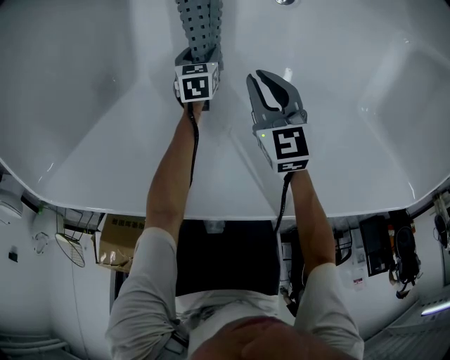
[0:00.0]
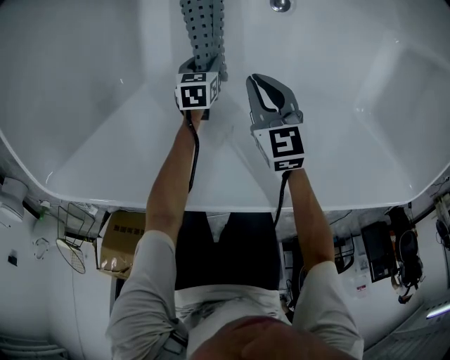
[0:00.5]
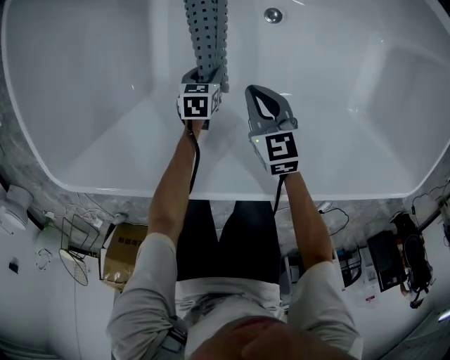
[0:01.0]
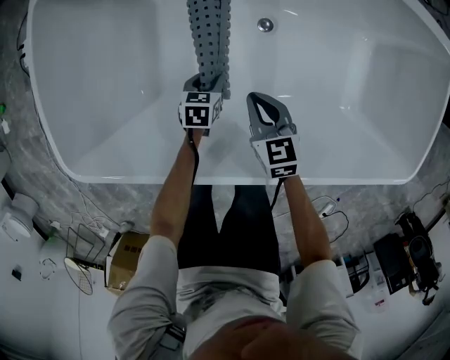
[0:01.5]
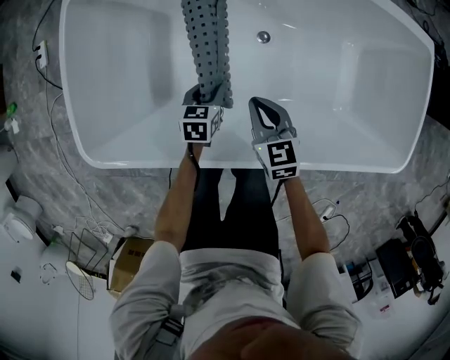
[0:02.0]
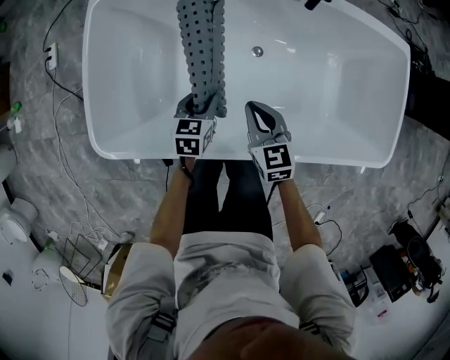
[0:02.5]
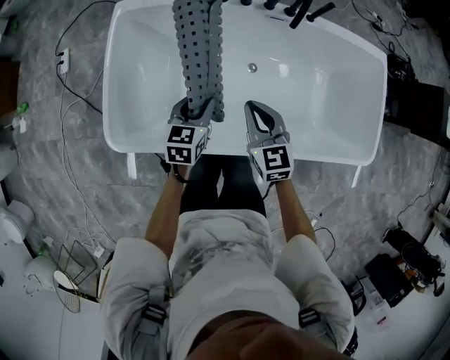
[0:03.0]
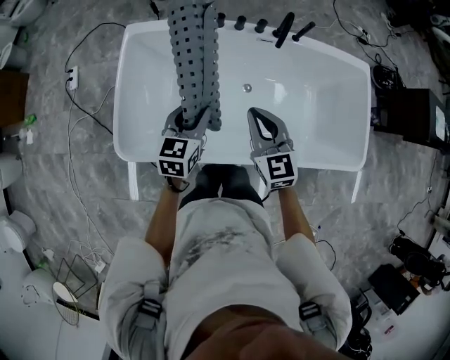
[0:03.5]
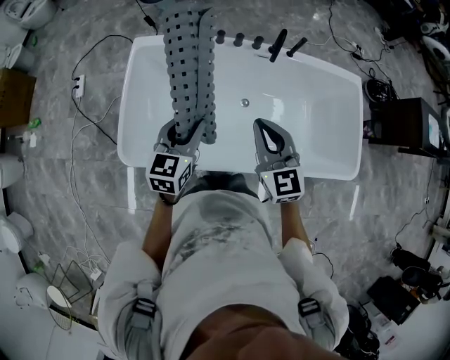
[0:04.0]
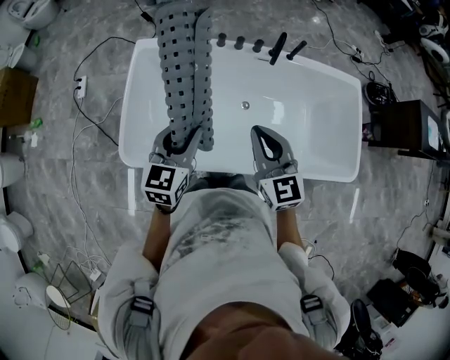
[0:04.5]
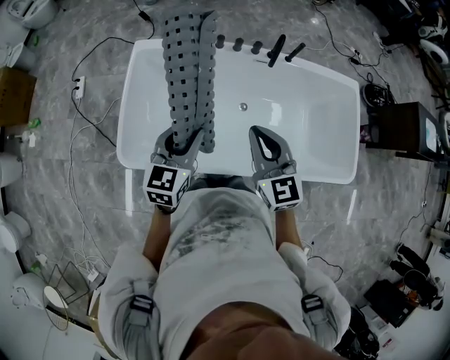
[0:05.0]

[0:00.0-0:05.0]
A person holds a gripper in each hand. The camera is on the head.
0:00.0 to 0:02.5: Both grippers travel together upward, some 35 cm. The left gripper turns by roughly 30 degrees.
0:02.5 to 0:05.0: The two grippers go some 40 cm upward. The right gripper swivels roughly 30 degrees; the left gripper turns by approximately 30 degrees.

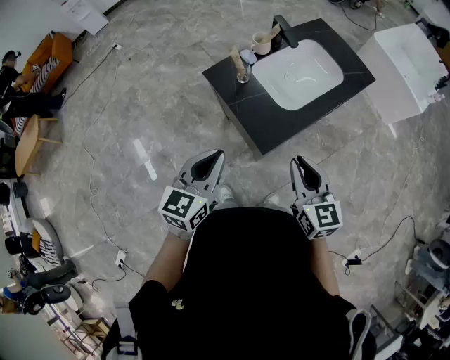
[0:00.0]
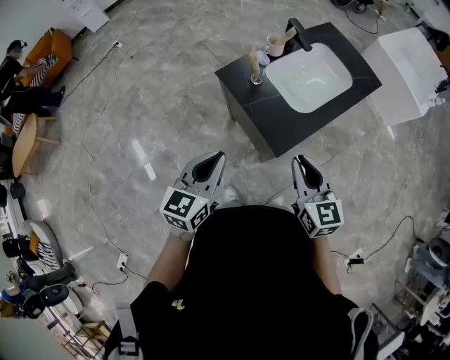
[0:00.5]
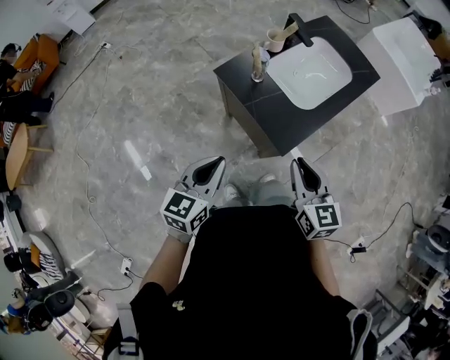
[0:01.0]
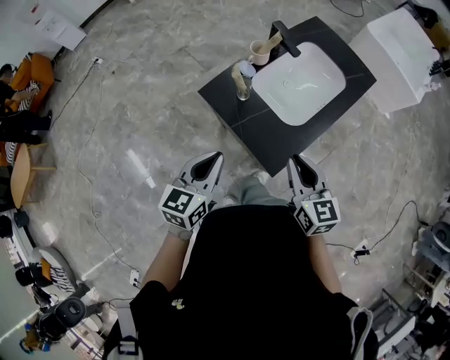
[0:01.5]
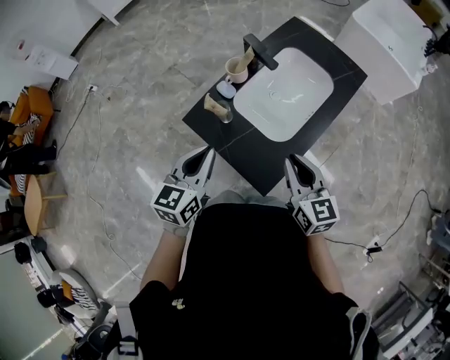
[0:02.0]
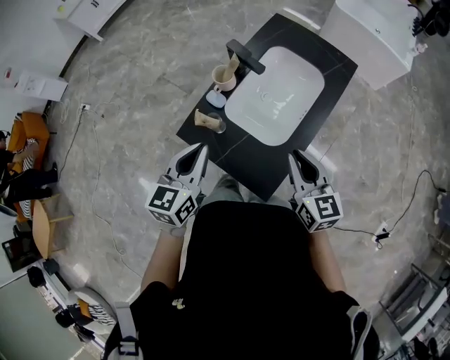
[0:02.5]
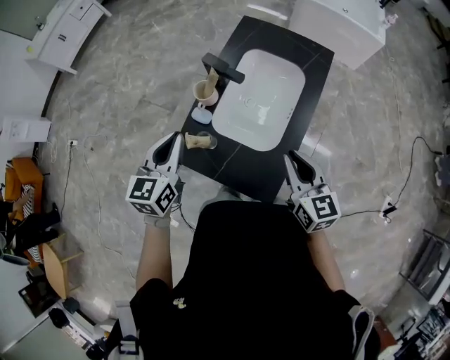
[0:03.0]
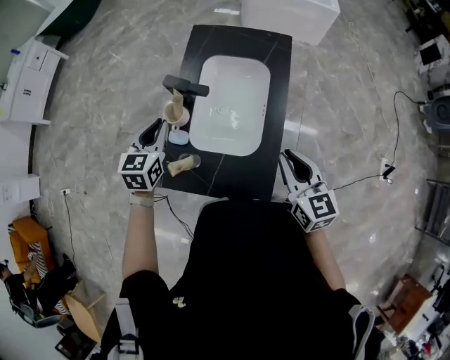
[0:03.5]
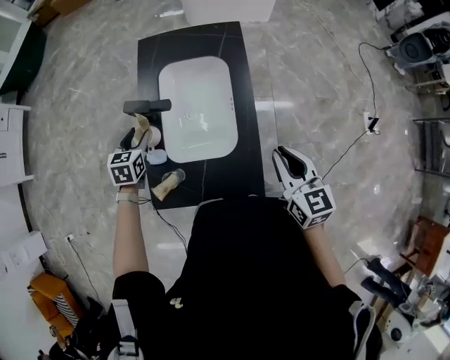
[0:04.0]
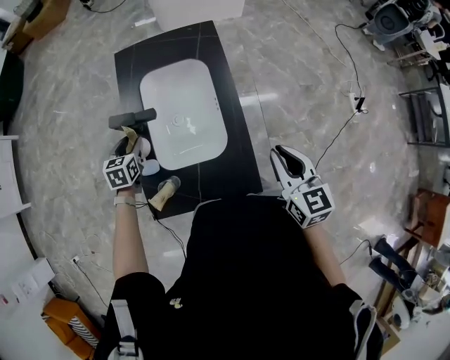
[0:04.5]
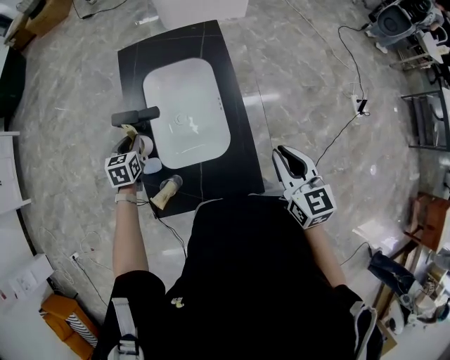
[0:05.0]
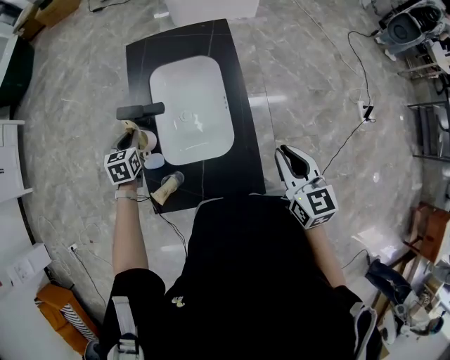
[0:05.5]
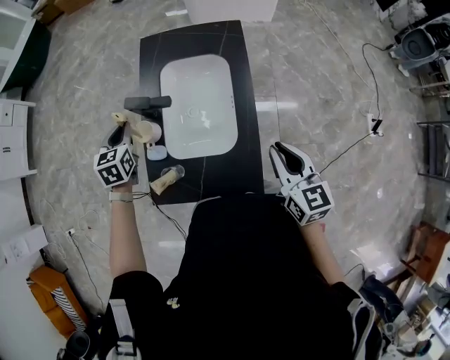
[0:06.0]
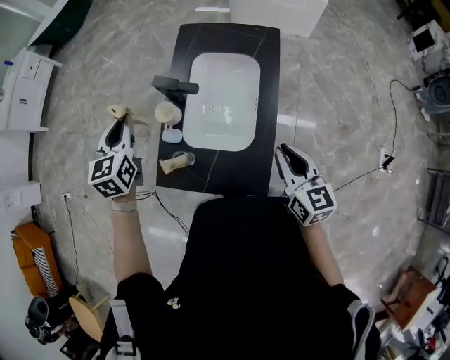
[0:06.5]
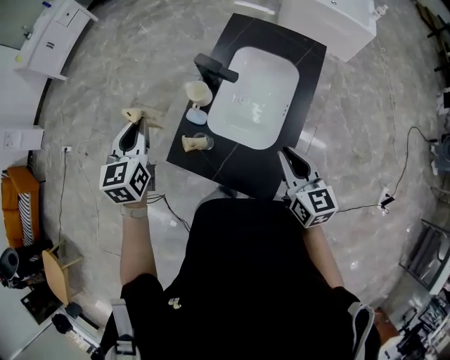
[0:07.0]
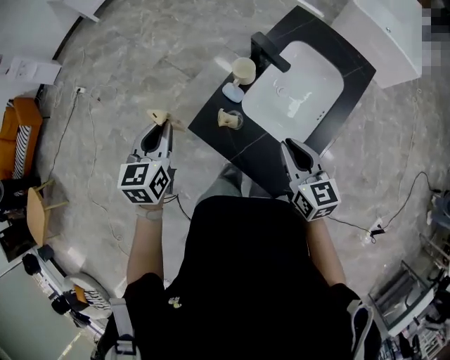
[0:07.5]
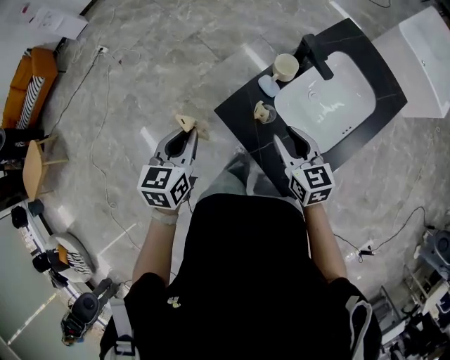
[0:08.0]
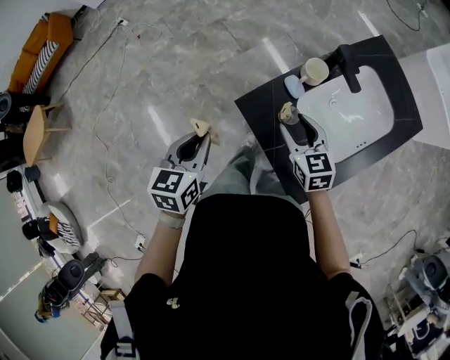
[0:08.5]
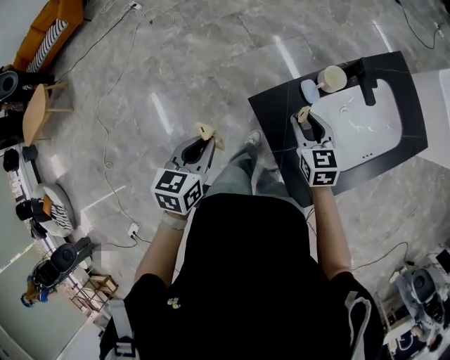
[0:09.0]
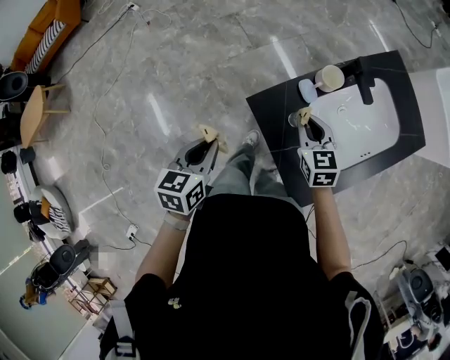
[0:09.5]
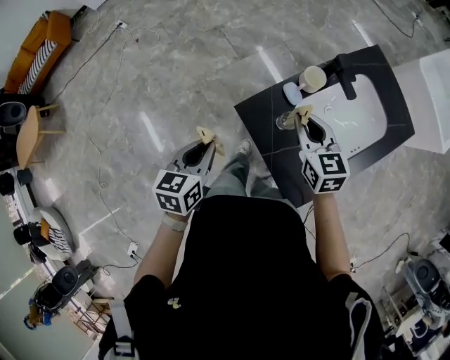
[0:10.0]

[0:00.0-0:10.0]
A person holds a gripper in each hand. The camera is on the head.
0:00.0 to 0:02.0: Both grippers move forward, roughly 20 cm.
0:02.0 to 0:04.0: The right gripper shifts by some 10 cm, and rotates roughly 40 degrees, while the left gripper ends up about 35 cm from where it was, turns by about 40 degrees, and opens.
0:04.0 to 0:06.0: The left gripper moves upward, some 5 cm, and closes up.
0:06.0 to 0:08.0: The left gripper moves about 10 cm upward and comes back, and rotates roughly 40 degrees. The right gripper ends up roughly 30 cm from where it was, and rotates some 60 degrees.
0:08.0 to 0:10.0: The right gripper moves forward, some 5 cm, travels downward and back again, roughly 5 cm each way, and closes. Meanwhile the left gripper ends up roughly 5 cm from where it was.

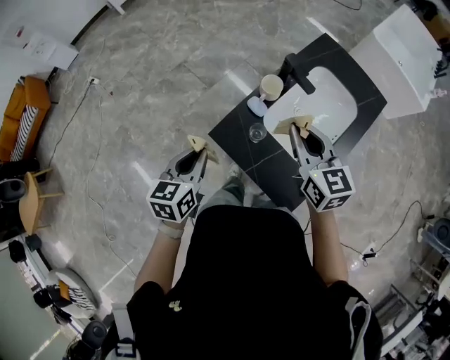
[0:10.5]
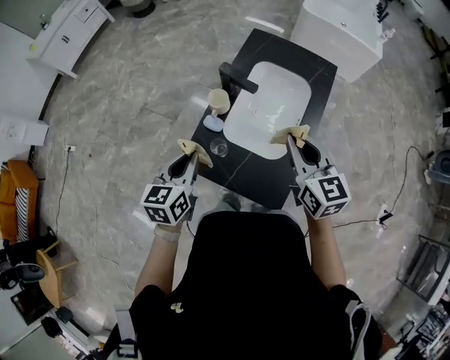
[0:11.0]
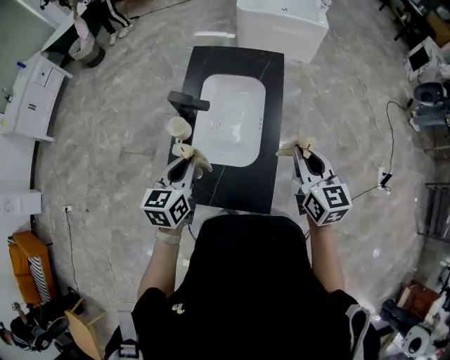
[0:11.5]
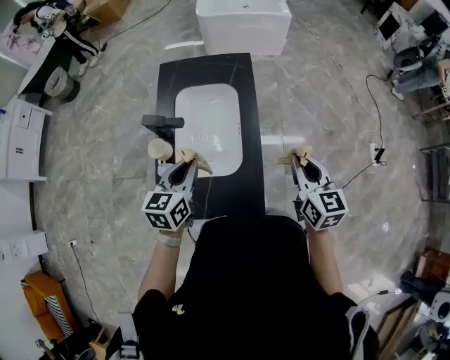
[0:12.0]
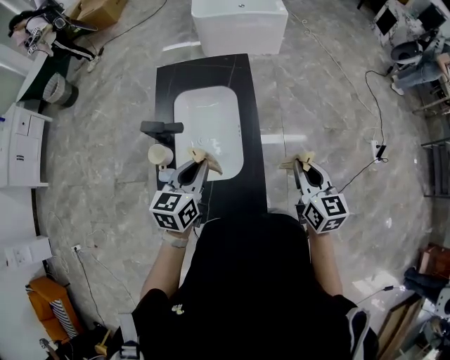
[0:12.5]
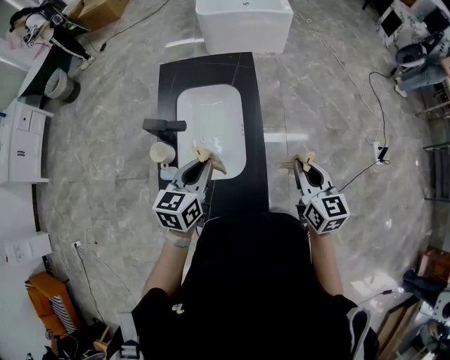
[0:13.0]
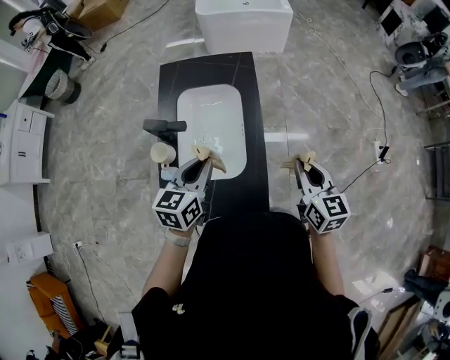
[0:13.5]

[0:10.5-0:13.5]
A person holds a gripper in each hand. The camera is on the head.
0:10.5 to 0:12.0: The left gripper changes place by about 30 cm, and swivels about 40 degrees, while the right gripper changes place by some 35 cm, and changes its angle by approximately 50 degrees.
0:12.0 to 0:13.5: There are only small adjustments of the grippers.

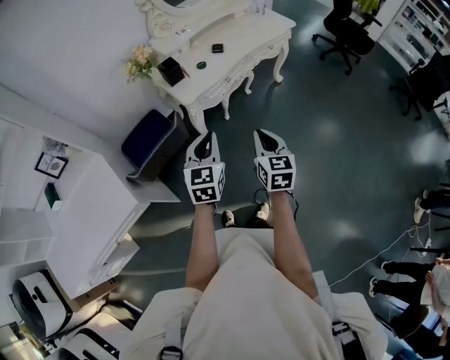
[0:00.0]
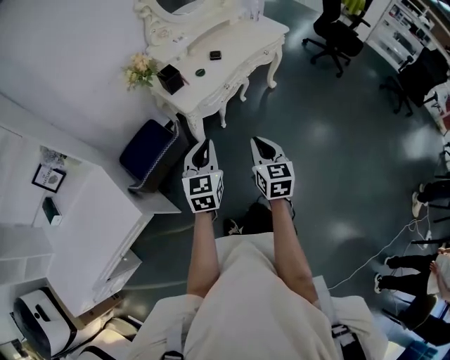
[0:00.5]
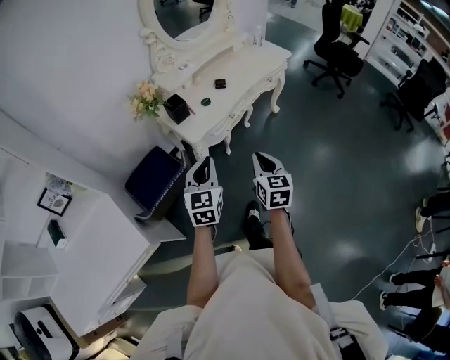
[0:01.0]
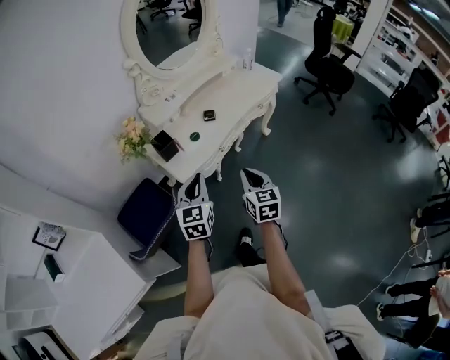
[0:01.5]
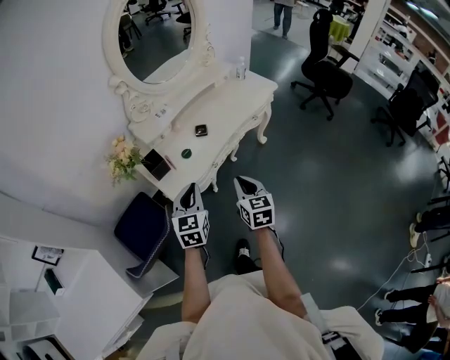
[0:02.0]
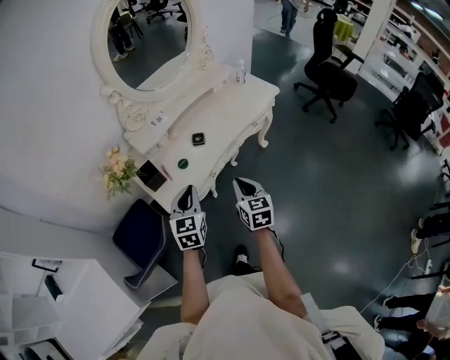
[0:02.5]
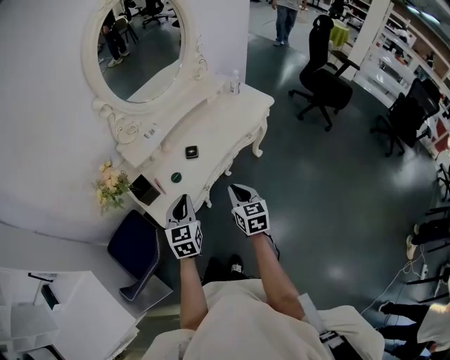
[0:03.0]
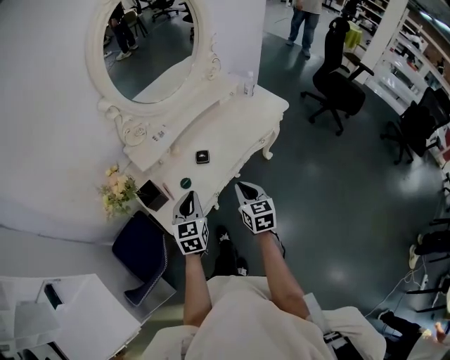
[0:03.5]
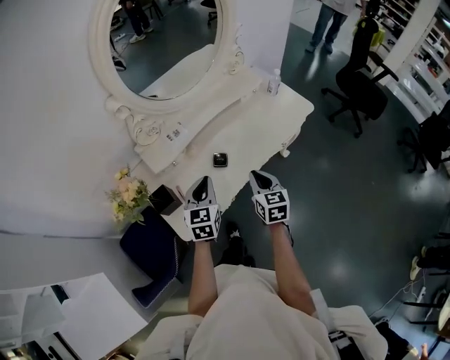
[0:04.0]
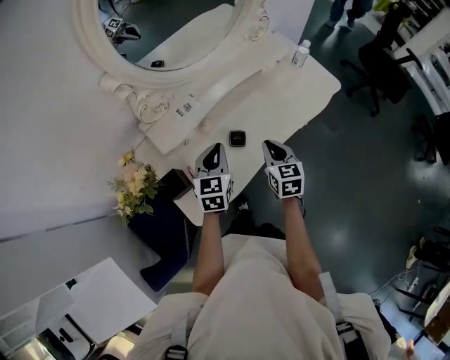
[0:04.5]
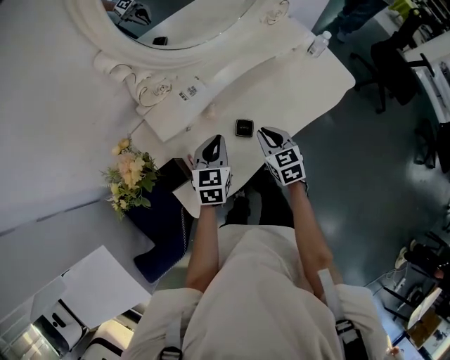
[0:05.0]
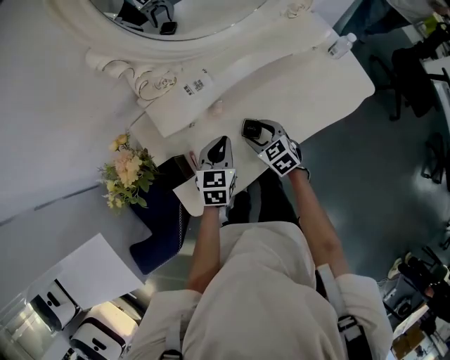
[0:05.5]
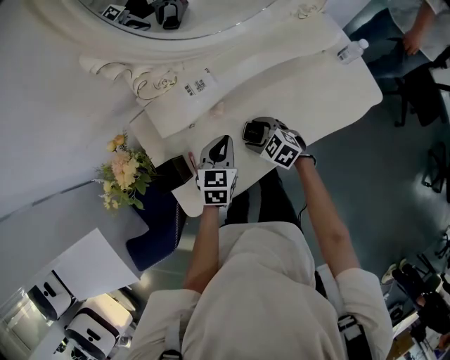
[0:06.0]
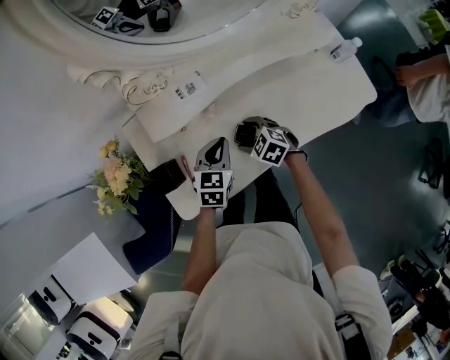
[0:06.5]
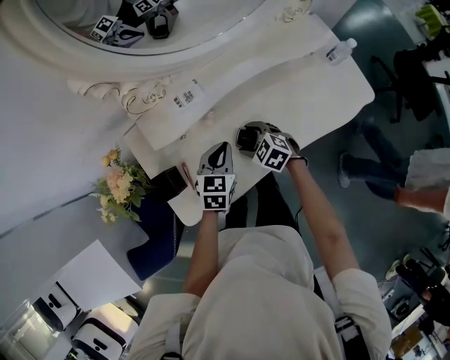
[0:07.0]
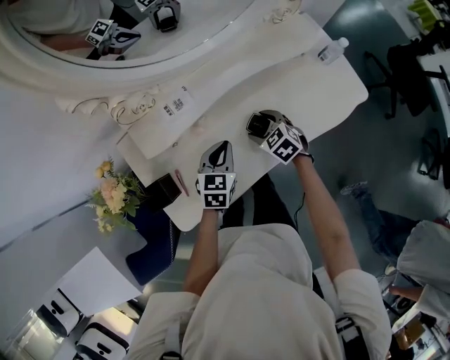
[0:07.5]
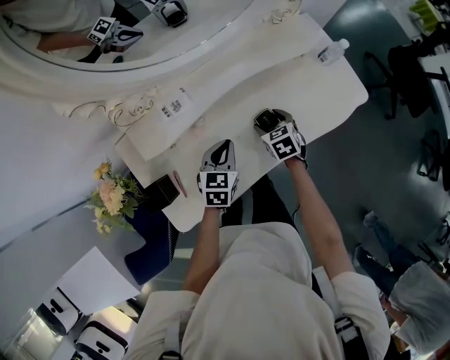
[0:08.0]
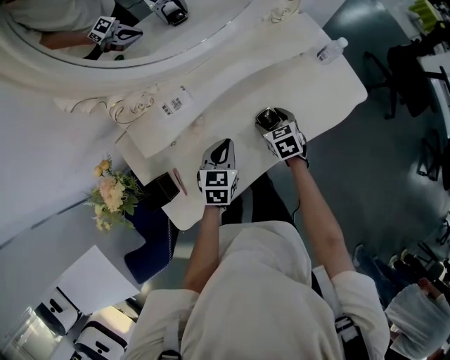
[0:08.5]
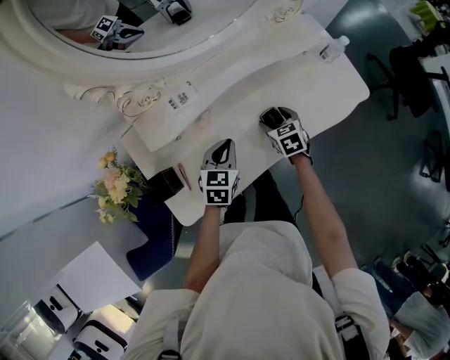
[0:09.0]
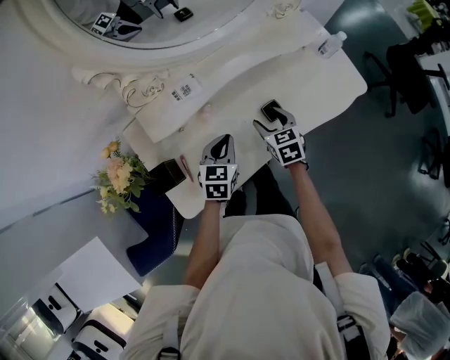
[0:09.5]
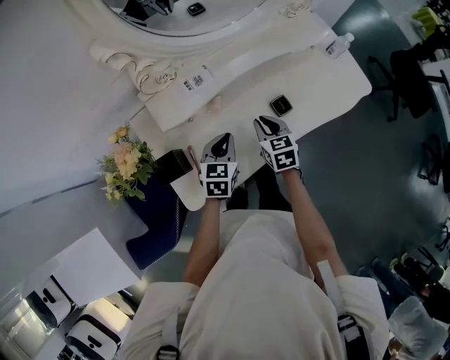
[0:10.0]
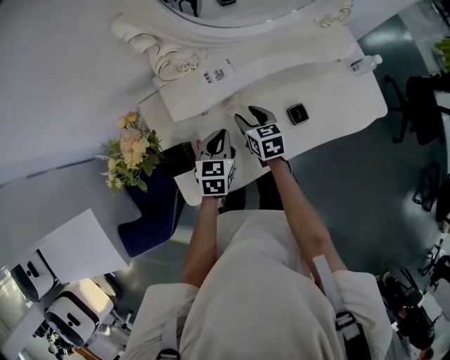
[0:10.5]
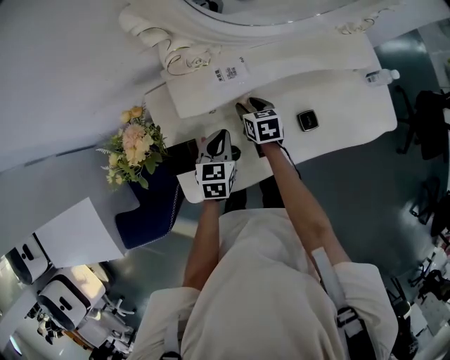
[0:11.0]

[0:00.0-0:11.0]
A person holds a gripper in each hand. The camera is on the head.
0:00.0 to 0:02.0: The grippers both shift forward by roughly 25 cm.
0:02.0 to 0:03.5: Both grippers travel together forward, roughly 15 cm.
0:03.5 to 0:05.5: Both grippers move forward and downward, roughly 30 cm. The right gripper rotates roughly 50 degrees, and opens.
0:05.5 to 0:07.5: The two grippers go approximately 10 cm to the right.
0:07.5 to 0:09.0: The right gripper is displaced to the right by approximately 5 cm, and changes its angle by roughly 20 degrees.
0:09.0 to 0:11.0: The left gripper heads to the left, covering approximately 15 cm; the right gripper shifts roughly 20 cm to the left, and closes up.
